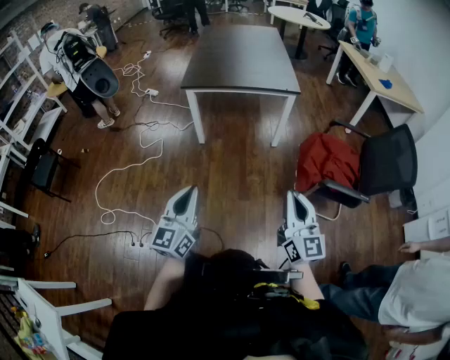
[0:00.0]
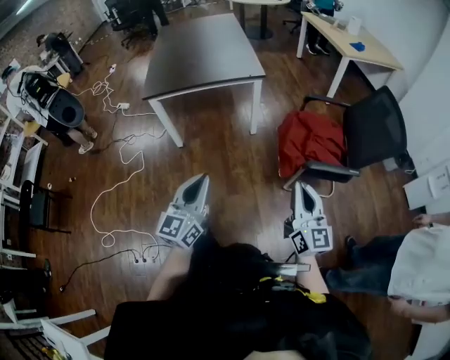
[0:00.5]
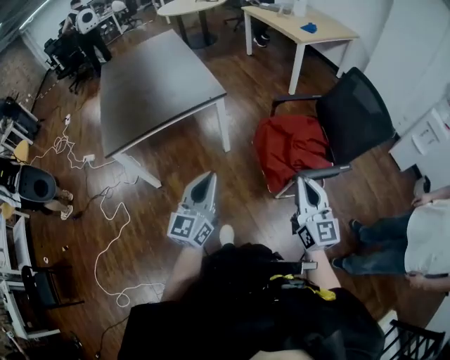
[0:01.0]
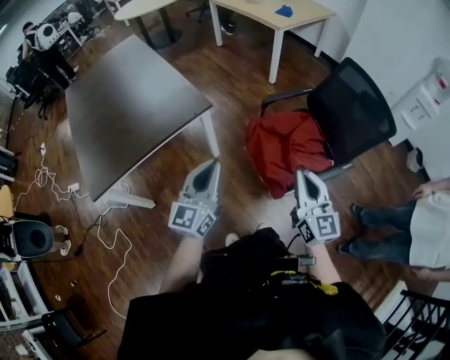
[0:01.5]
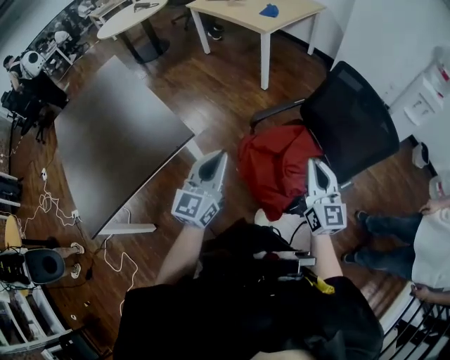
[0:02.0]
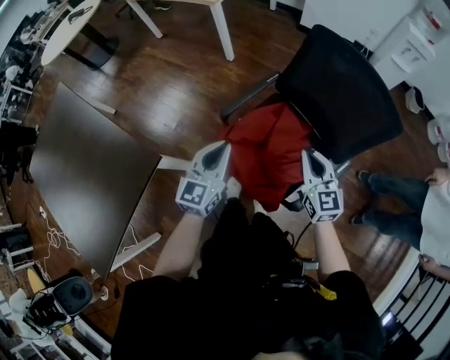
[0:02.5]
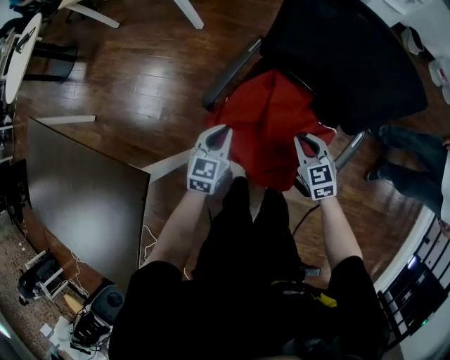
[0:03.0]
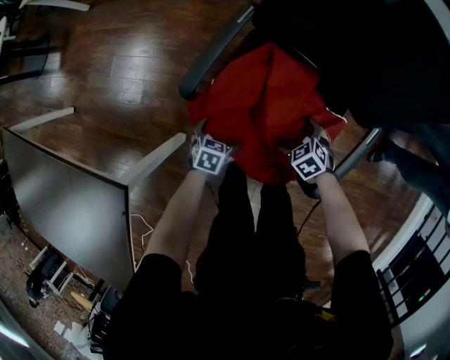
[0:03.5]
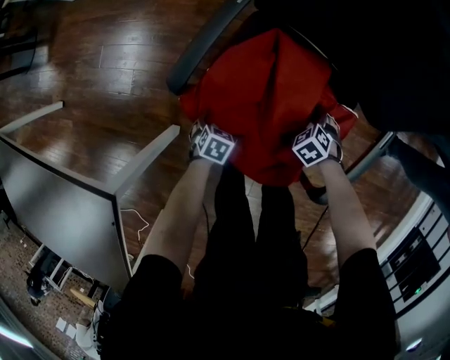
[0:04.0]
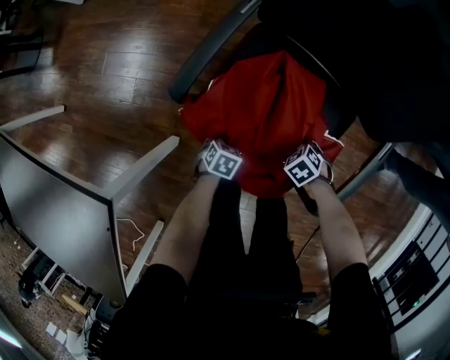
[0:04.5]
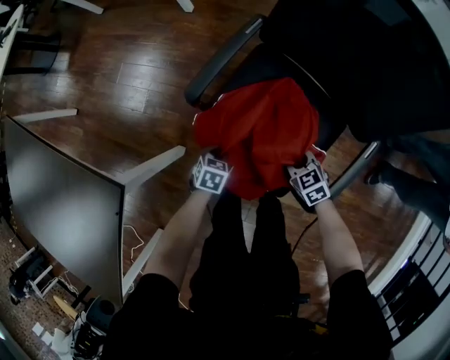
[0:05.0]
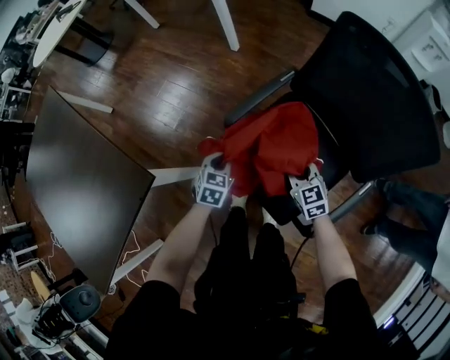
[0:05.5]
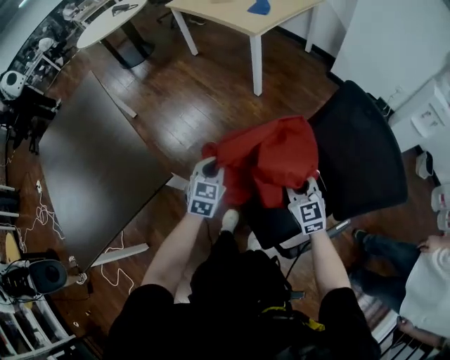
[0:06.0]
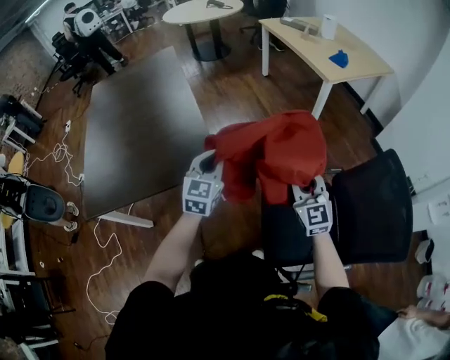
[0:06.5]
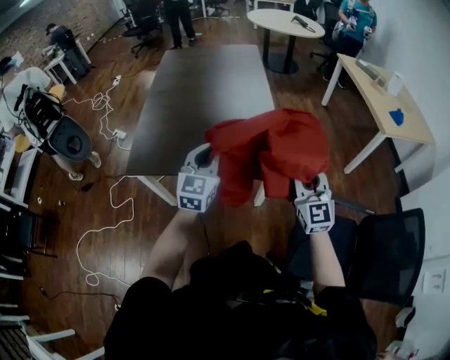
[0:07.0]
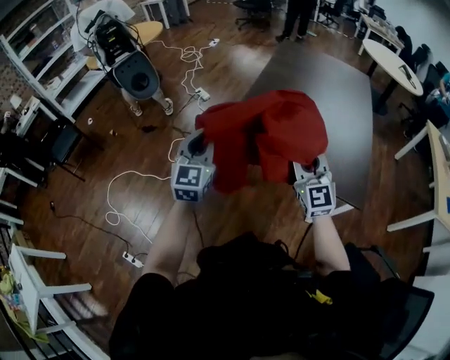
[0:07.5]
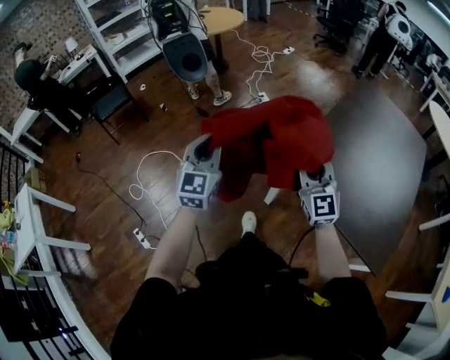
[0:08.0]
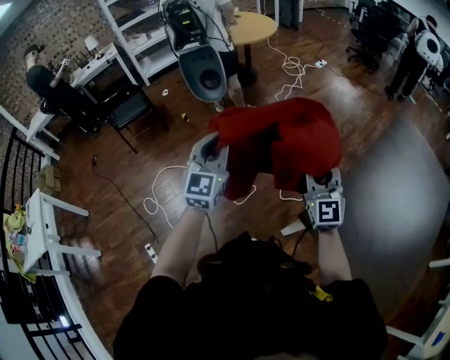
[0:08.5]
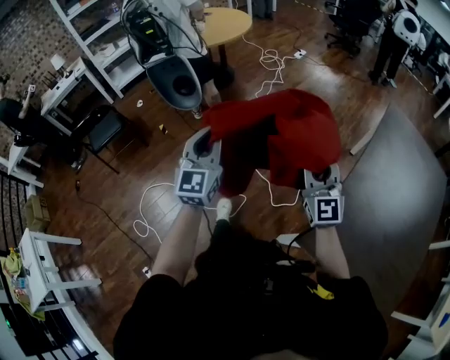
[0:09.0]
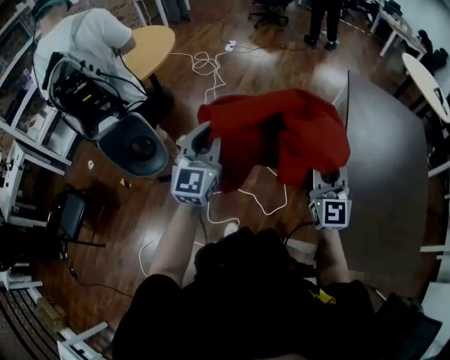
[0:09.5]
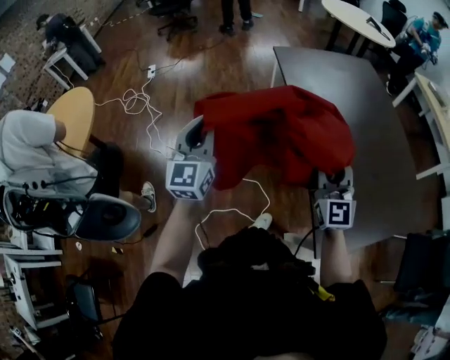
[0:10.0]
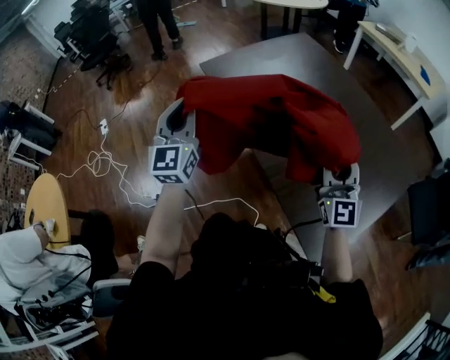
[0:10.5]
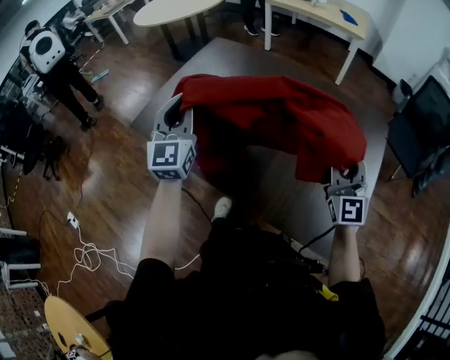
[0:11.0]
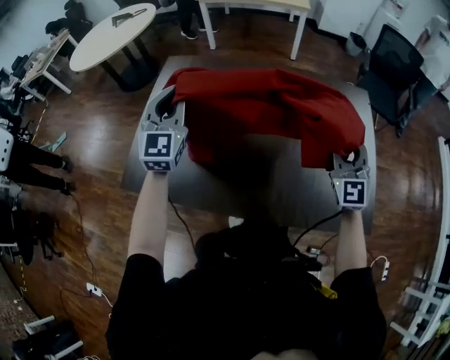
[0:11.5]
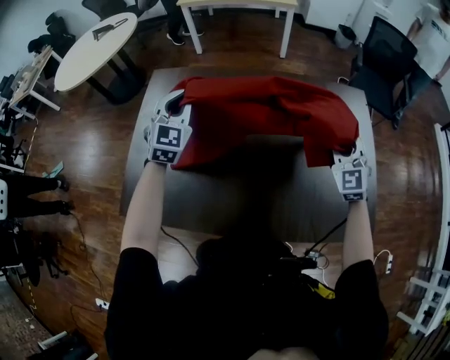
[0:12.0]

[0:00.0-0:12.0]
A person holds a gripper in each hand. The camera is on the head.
0:00.0 to 0:02.0: Both grippers are carried approximately 60 cm. The left gripper changes its angle by about 50 degrees. Meanwhile the right gripper rotates some 50 degrees.
0:02.0 to 0:04.0: Both grippers move downward, about 60 cm. The right gripper tips its fingers downward by approximately 80 degrees, and opens its fingers, while the left gripper tilts its fingers about 70 degrees downward, and opens.
0:04.0 to 0:06.0: Both grippers move upward, some 40 cm. The left gripper tips its fingers upward by approximately 40 degrees, and closes its fingers. Meanwhile the right gripper points its fingers about 60 degrees further upward, and closes.
0:06.0 to 0:08.0: Both grippers are carried roughly 1 m. The right gripper swivels roughly 90 degrees; the left gripper tilts its fingers roughly 30 degrees upward.
0:08.0 to 0:10.0: The two grippers travel together, roughly 60 cm. The right gripper turns by about 60 degrees. Meanwhile the left gripper rotates approximately 50 degrees.
0:10.0 to 0:12.0: Both grippers are carried roughly 70 cm. The left gripper turns by about 80 degrees. Meanwhile the right gripper turns by some 80 degrees.

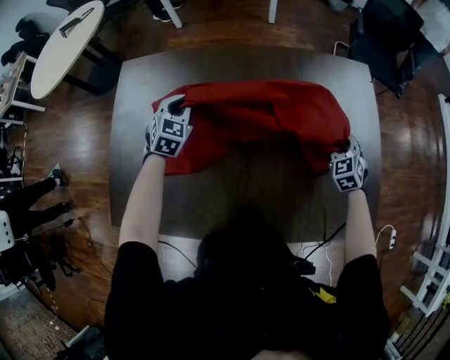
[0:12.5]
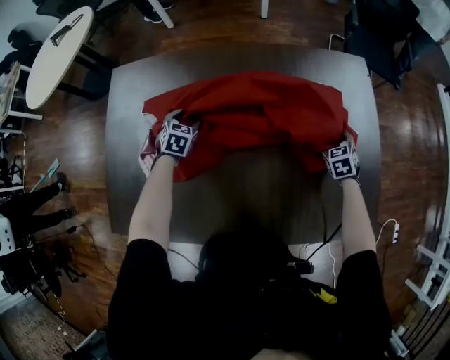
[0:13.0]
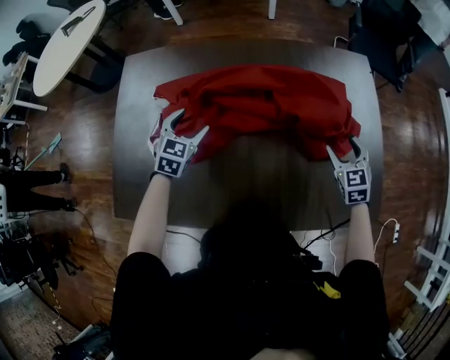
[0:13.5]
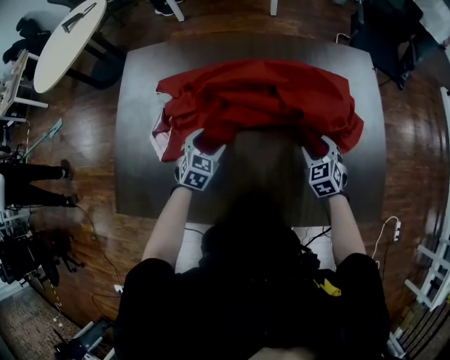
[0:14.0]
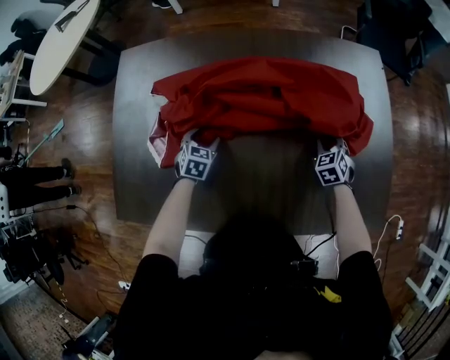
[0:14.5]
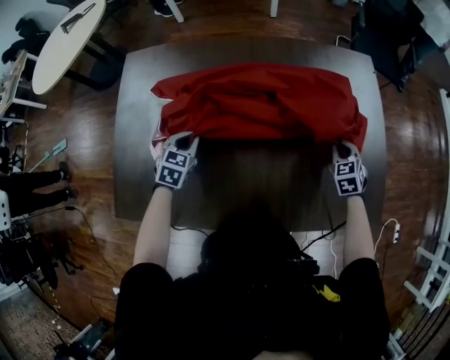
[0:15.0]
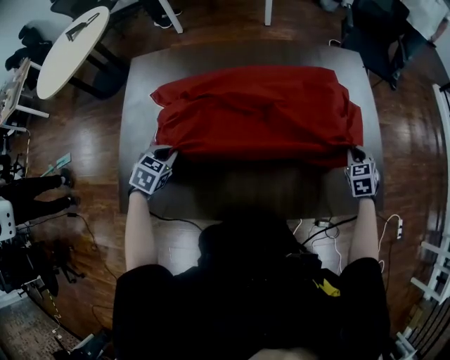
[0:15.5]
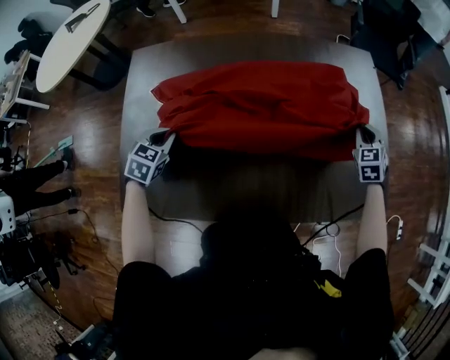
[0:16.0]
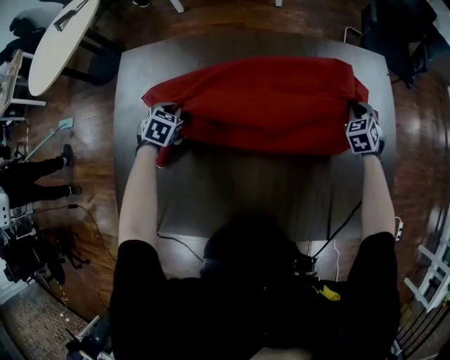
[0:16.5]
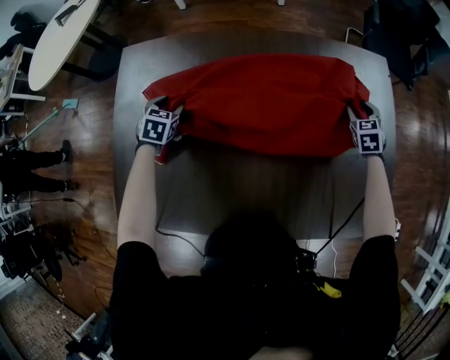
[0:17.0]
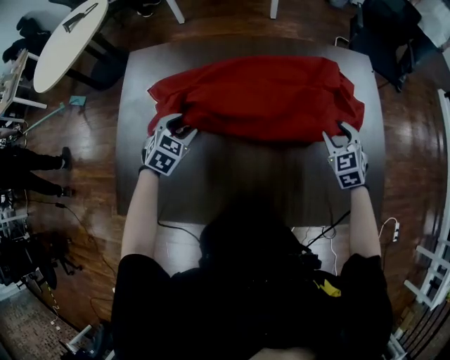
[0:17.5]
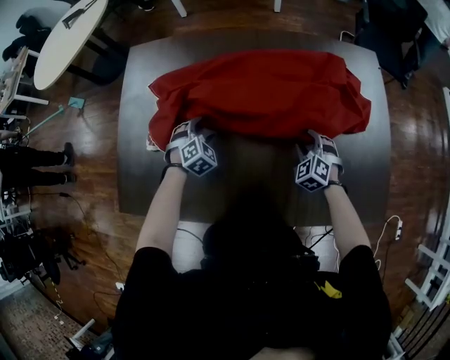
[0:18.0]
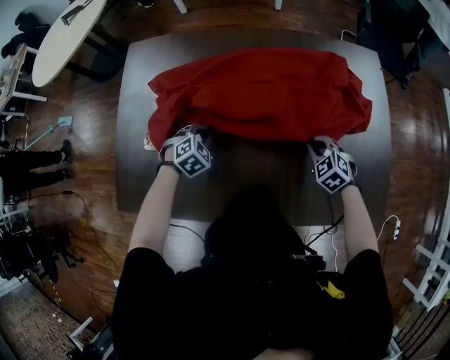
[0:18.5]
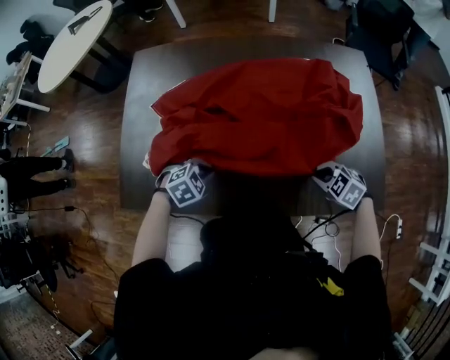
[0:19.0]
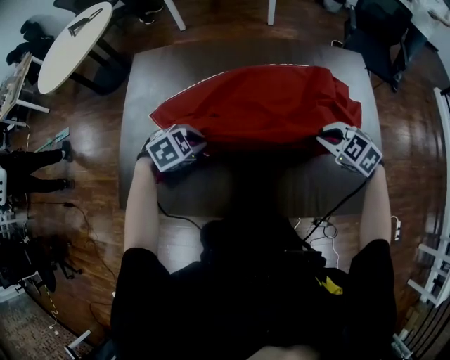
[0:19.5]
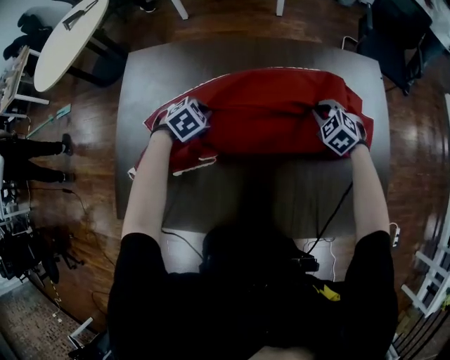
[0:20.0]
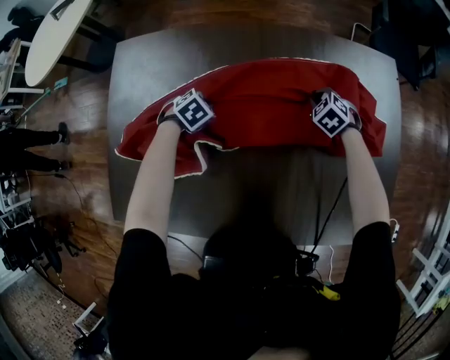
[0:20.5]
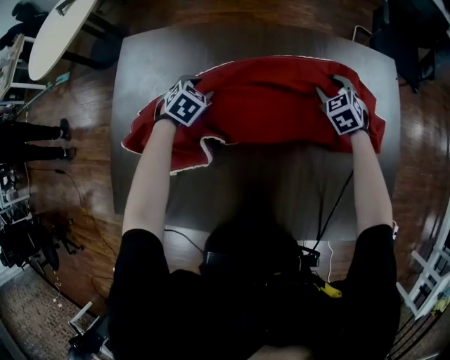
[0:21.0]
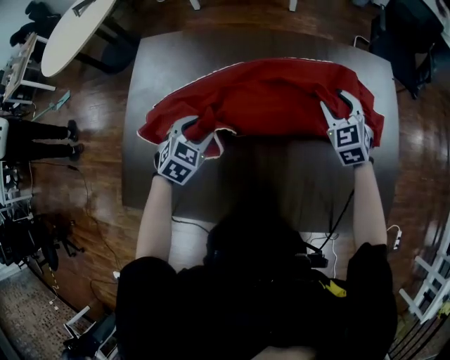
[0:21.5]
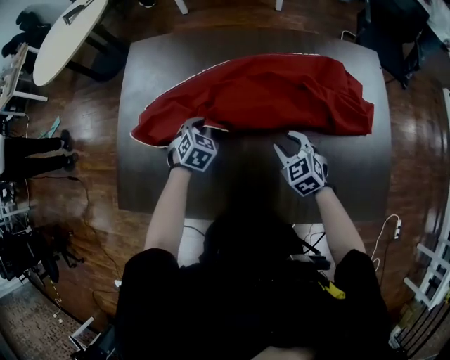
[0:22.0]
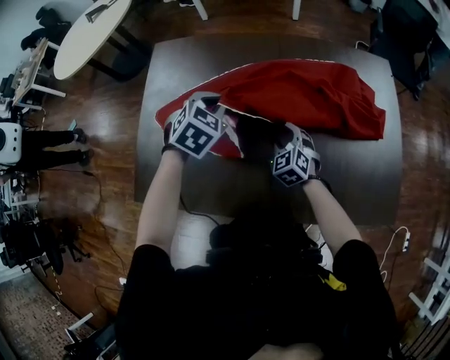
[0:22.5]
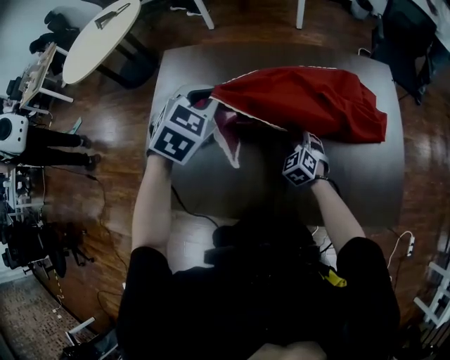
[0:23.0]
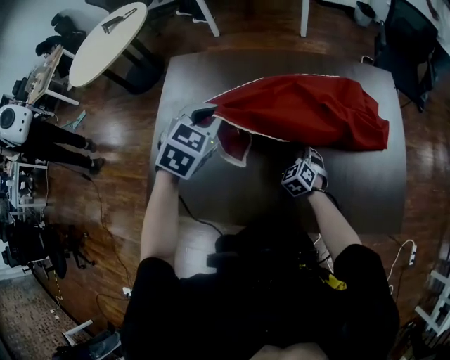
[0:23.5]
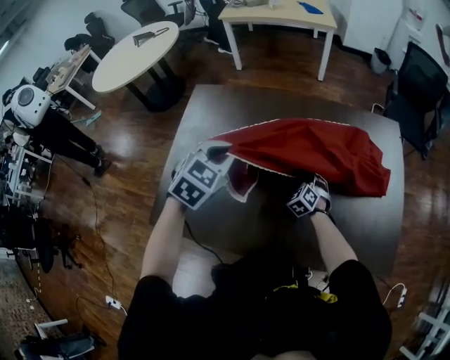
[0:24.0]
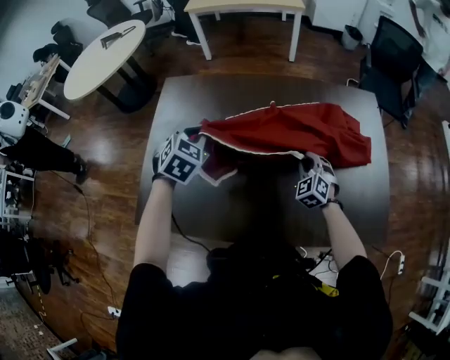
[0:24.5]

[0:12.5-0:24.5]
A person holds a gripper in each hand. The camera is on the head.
0:12.5 to 0:14.5: The right gripper swings up and down, roughly 15 cm each way, with 2 reversals, and opens, then closes again. The left gripper swings up and down, about 15 cm each way, with 2 reversals, swivels some 20 degrees, and opens up.
0:14.5 to 0:16.5: The right gripper is displaced forward and upward by some 15 cm. The left gripper heads to the left, forward and upward, covering roughly 15 cm, and closes its fingers.
0:16.5 to 0:18.5: The right gripper travels backward and to the left by roughly 25 cm, changes its angle by roughly 30 degrees, and opens, then closes once more. The left gripper shifts some 20 cm backward and to the right, swivels about 30 degrees, and opens and closes again.
0:18.5 to 0:20.5: The right gripper moves roughly 15 cm upward and comes back. The left gripper moves about 10 cm upward and comes back.
0:20.5 to 0:22.5: The right gripper changes place by about 30 cm, turns by roughly 30 degrees, and opens up. The left gripper goes up and down, roughly 20 cm each way, reversing 2 times, turns by approximately 30 degrees, and opens and closes again.
0:22.5 to 0:24.5: The right gripper moves to the right, about 10 cm, and closes up. The left gripper moves to the left, some 5 cm.

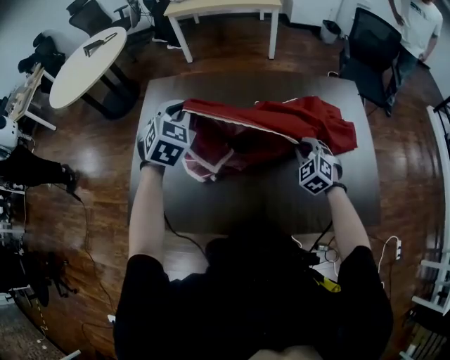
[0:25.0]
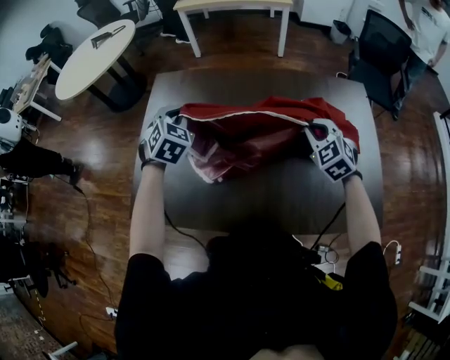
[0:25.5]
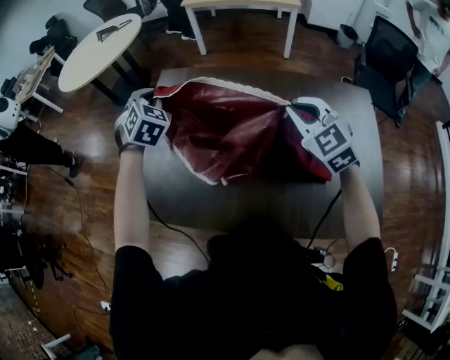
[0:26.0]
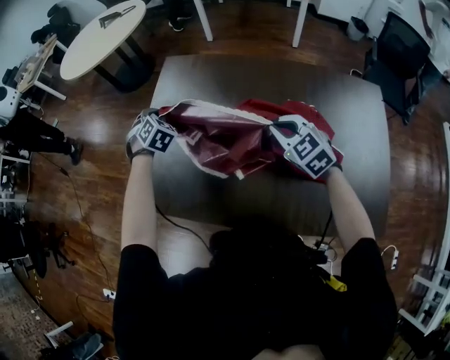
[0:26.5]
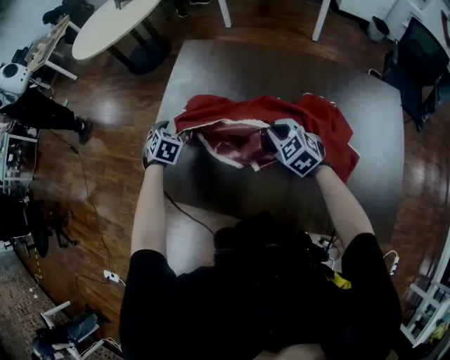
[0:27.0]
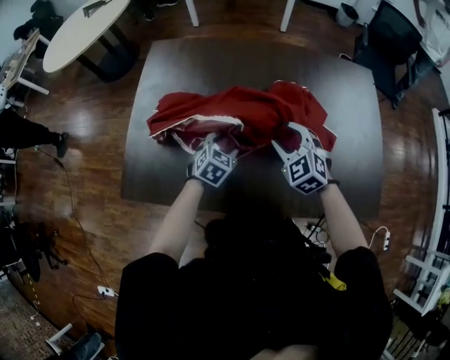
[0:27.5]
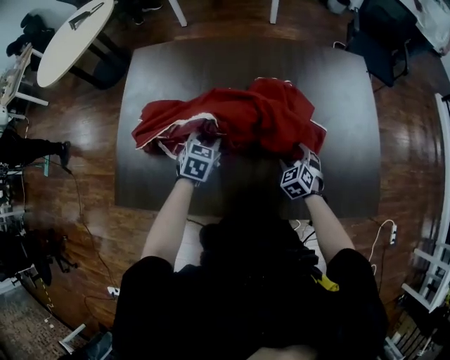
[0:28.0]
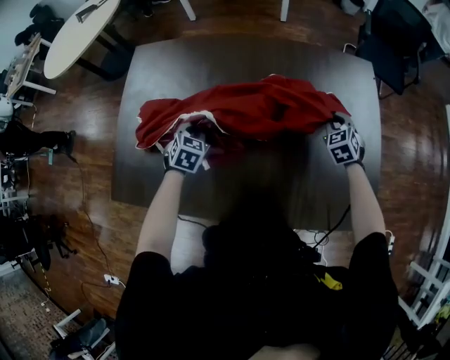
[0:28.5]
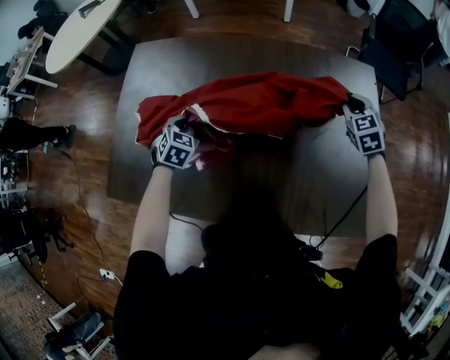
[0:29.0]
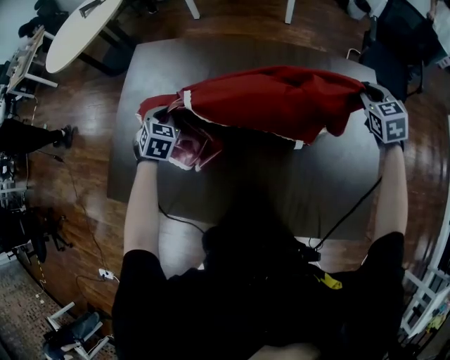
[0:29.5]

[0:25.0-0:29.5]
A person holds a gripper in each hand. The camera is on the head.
0:25.0 to 0:27.0: The left gripper swings up and down, approximately 25 cm each way, with 2 reversals, rotates approximately 40 degrees, and opens. Meanwhile the right gripper reaches roughly 20 cm upward, then returns, and changes its angle by some 30 degrees.
0:27.0 to 0:29.5: The right gripper changes place by roughly 50 cm, swivels approximately 30 degrees, and opens and closes again; the left gripper shifts by some 20 cm, and closes up.
